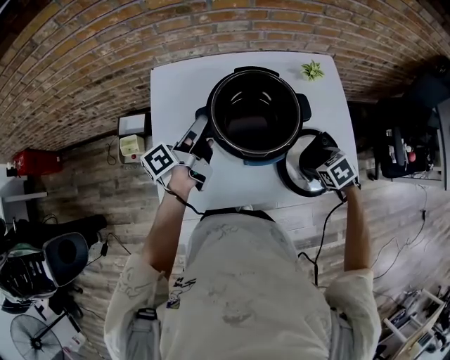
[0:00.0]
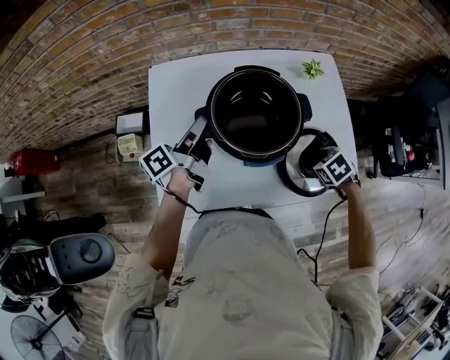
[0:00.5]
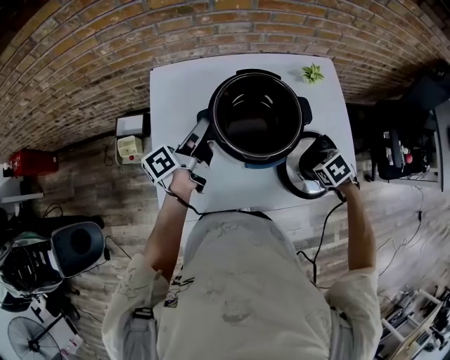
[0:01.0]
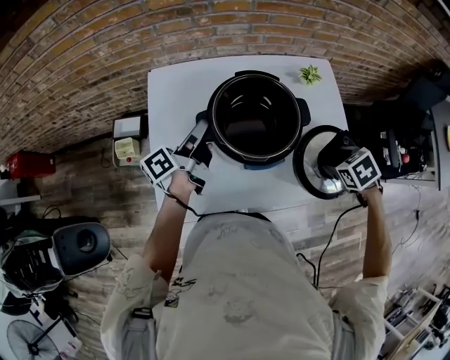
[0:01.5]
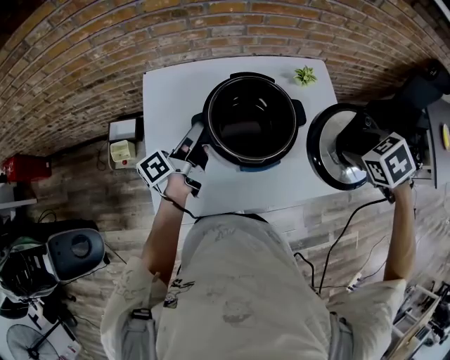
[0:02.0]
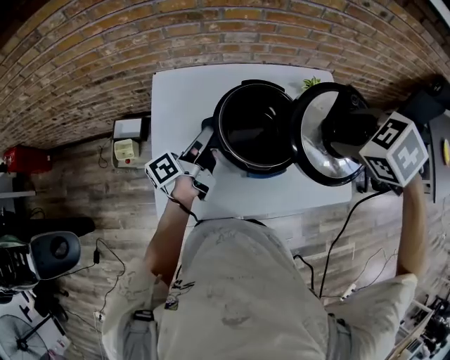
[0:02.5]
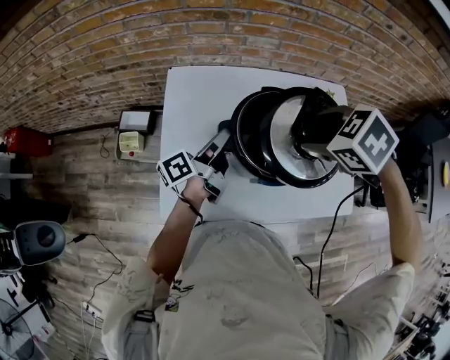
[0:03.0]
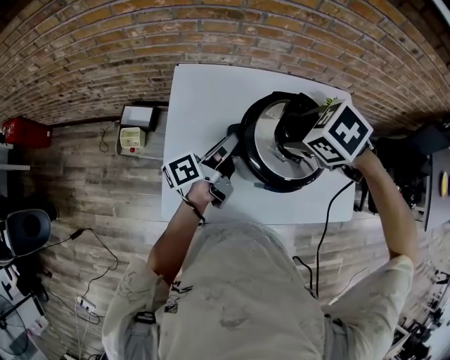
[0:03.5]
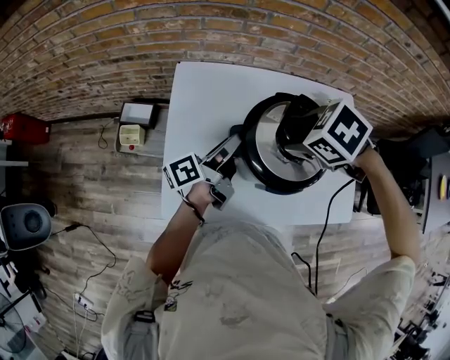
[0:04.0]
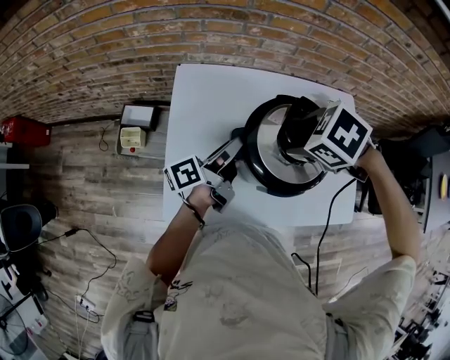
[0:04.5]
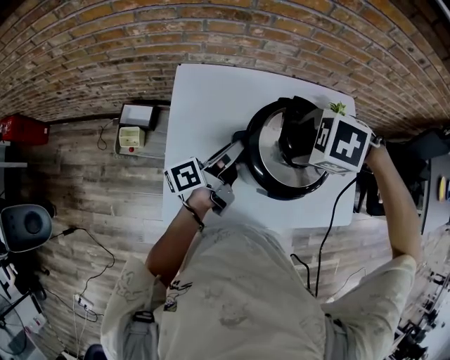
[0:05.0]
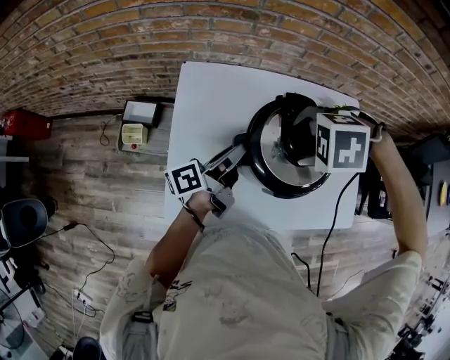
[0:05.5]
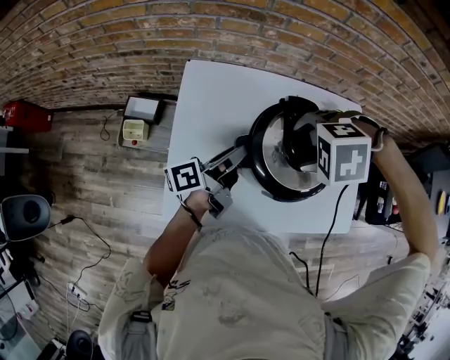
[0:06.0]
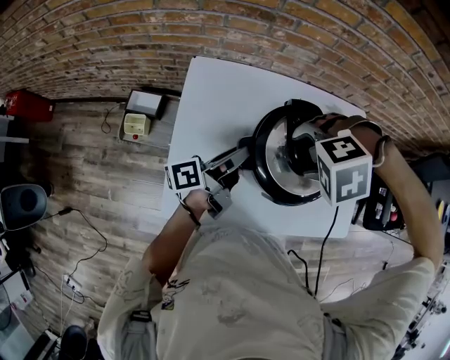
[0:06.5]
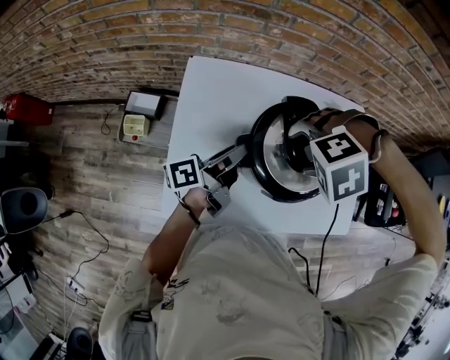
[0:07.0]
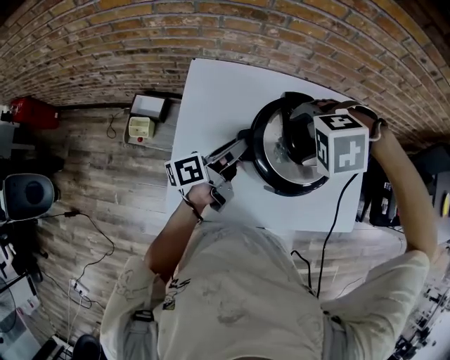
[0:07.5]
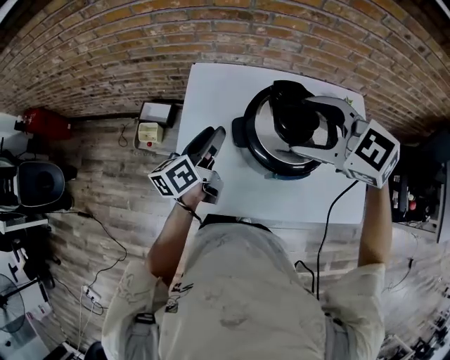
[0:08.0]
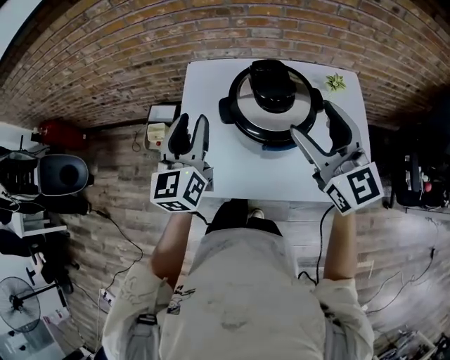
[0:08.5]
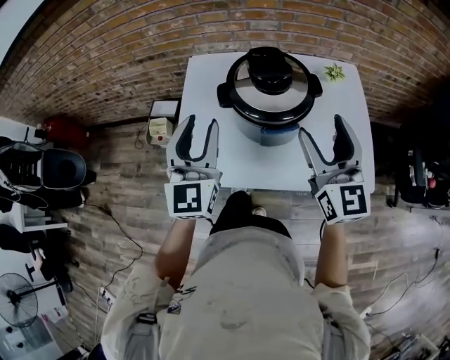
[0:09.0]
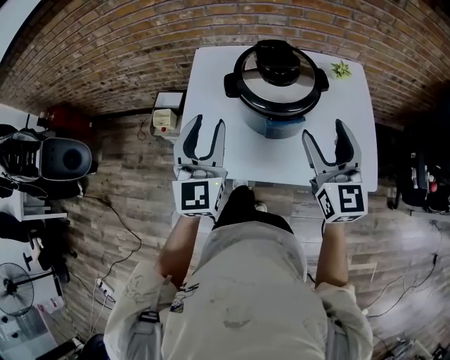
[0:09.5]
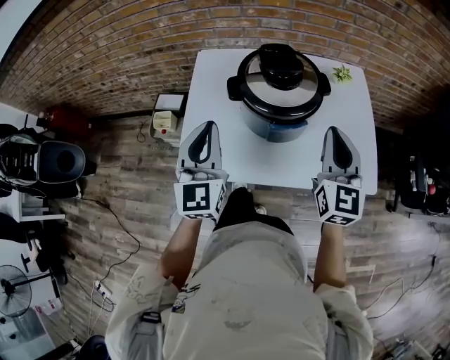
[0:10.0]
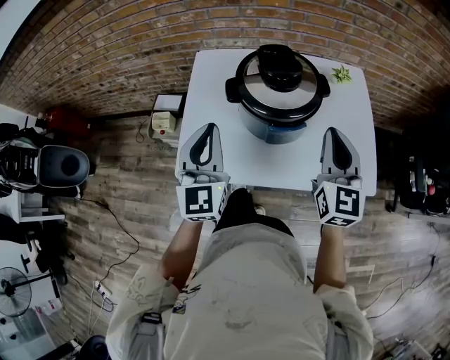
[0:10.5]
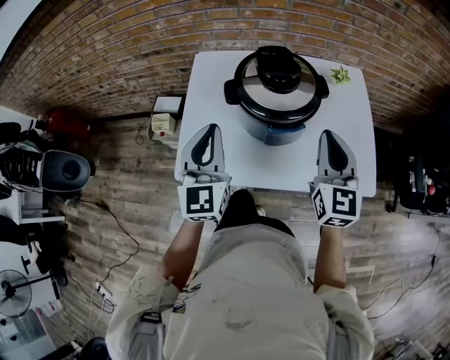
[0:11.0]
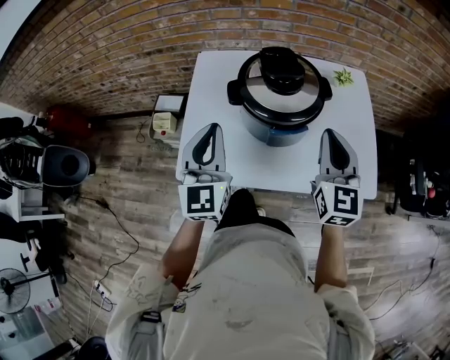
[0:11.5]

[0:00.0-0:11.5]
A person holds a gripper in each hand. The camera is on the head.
0:00.0 to 0:02.0: The right gripper heads upward, covering approximately 20 cm.
0:02.0 to 0:04.0: The right gripper travels upward and back again, approximately 5 cm each way, and turns by roughly 30 degrees.
0:04.0 to 0:06.0: The right gripper rotates around the line of its fingers by about 50 degrees, counterclockwise from behind.
0:06.0 to 0:07.5: The grippers stay close to where they were, moving slightly.
0:07.5 to 0:09.5: The left gripper changes place by roughly 20 cm, and rotates around the line of its fingers by about 80 degrees, clockwise from behind, while the right gripper ends up approximately 20 cm from where it was, and angles its fingers upward, by approximately 80 degrees.
0:09.5 to 0:11.5: The right gripper closes. The left gripper closes.

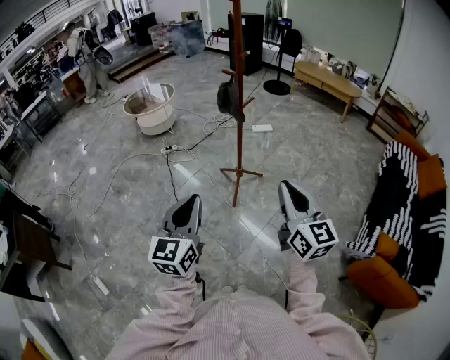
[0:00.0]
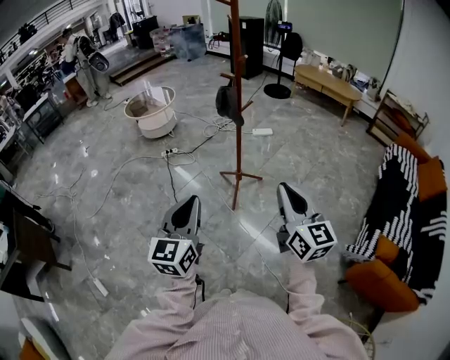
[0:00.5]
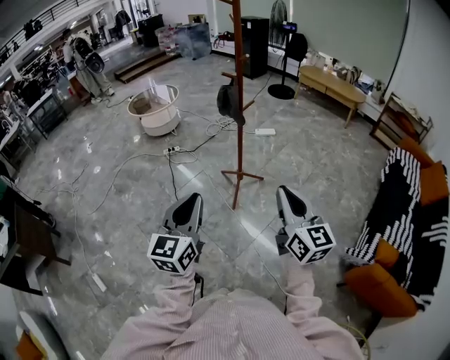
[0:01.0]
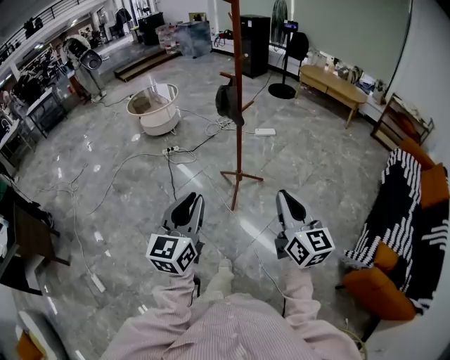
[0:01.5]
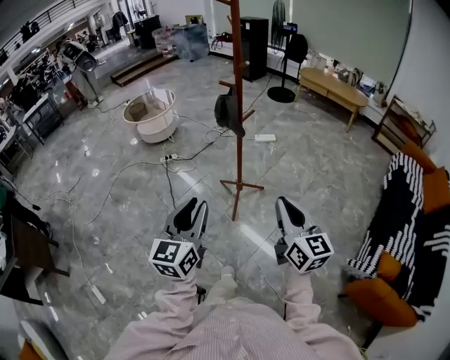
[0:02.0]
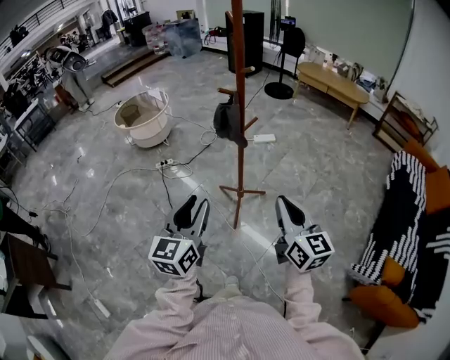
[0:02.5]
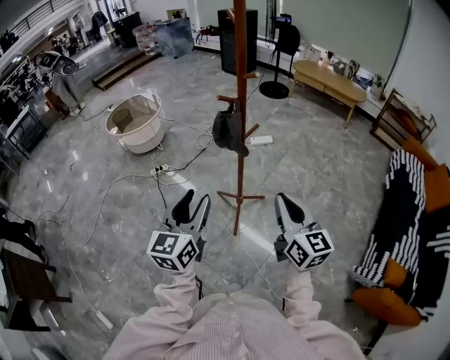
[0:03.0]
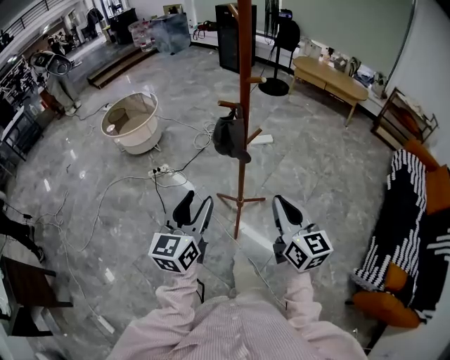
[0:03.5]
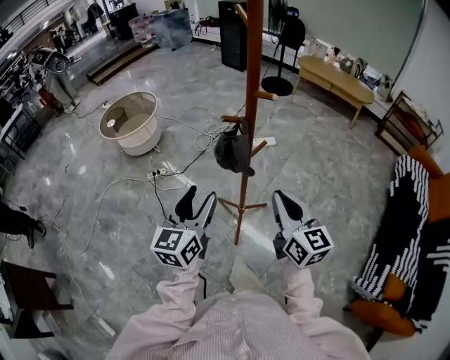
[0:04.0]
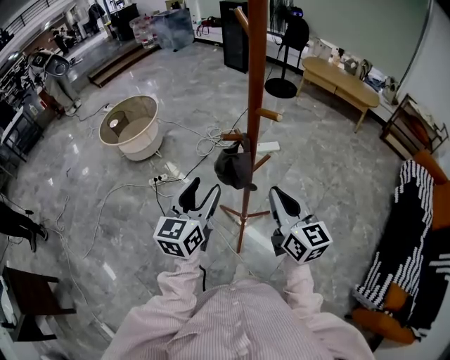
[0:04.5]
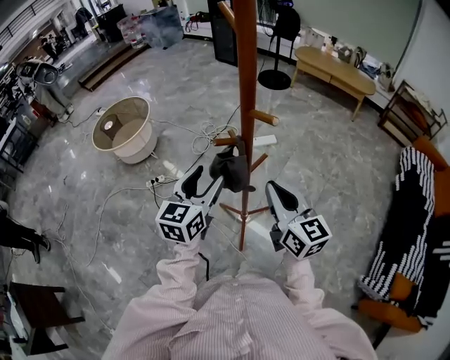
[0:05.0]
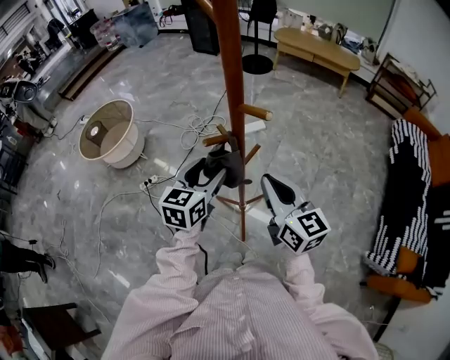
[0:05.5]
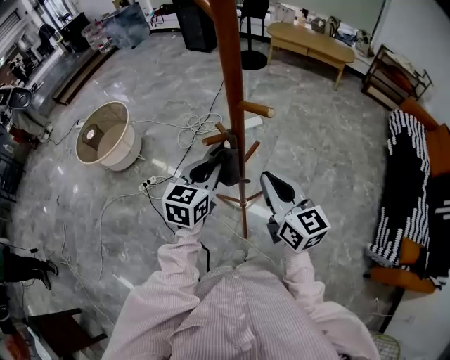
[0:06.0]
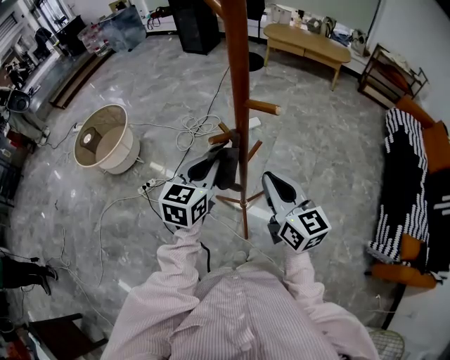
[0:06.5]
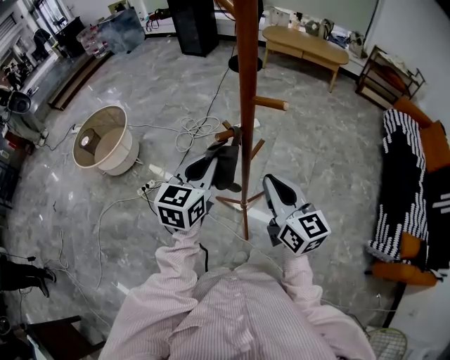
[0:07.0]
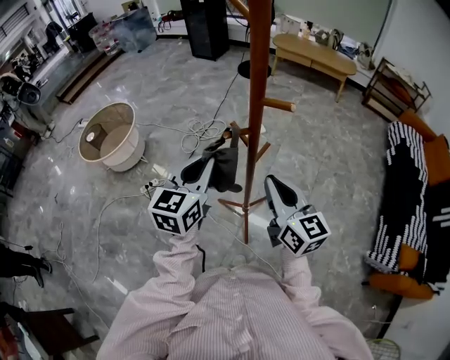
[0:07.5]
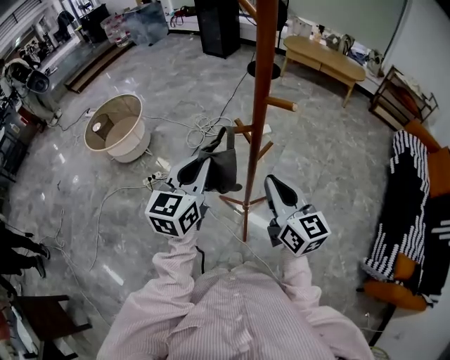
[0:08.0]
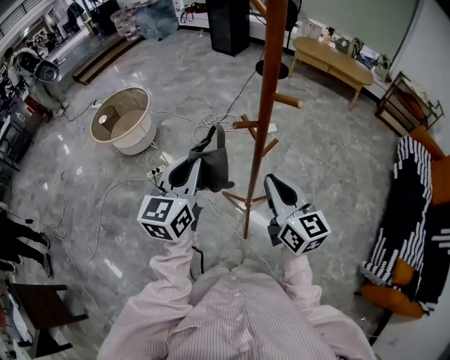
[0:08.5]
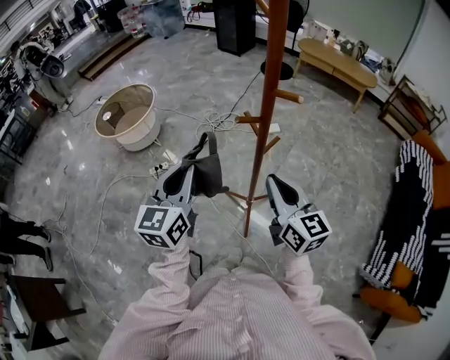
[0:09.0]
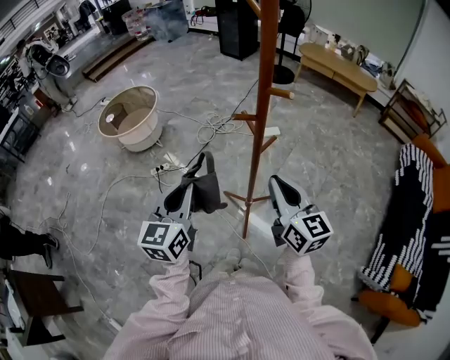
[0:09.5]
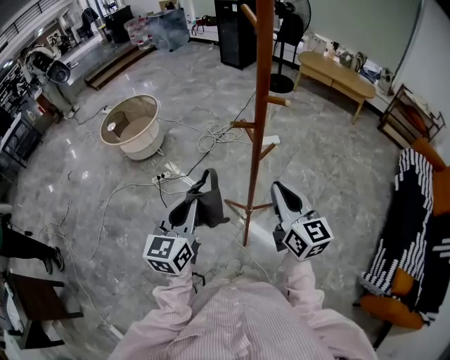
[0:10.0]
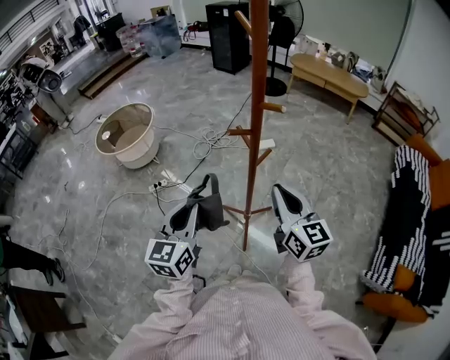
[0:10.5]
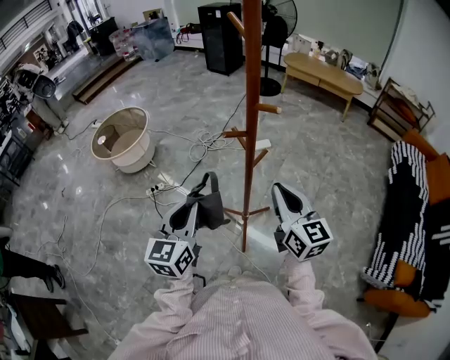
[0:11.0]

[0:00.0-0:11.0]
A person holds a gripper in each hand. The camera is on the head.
0:00.0 to 0:02.0: Both grippers move forward, some 10 cm.
0:02.0 to 0:03.5: Both grippers travel together forward, some 25 cm. The left gripper opens its fingers.
0:03.5 to 0:05.5: The two grippers go approximately 25 cm forward. The left gripper changes its angle by some 20 degrees.
0:05.5 to 0:07.5: The left gripper travels upward by approximately 5 cm, and closes up.
0:07.5 to 0:09.0: The left gripper travels backward and to the left by approximately 10 cm.
0:09.0 to 0:11.0: The left gripper travels backward by some 5 cm.

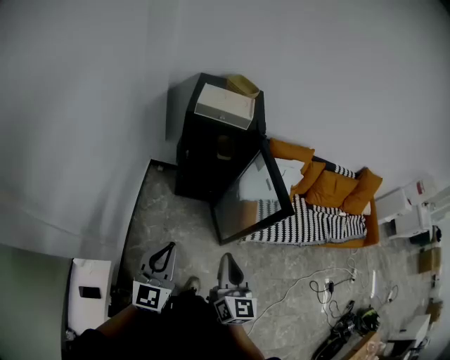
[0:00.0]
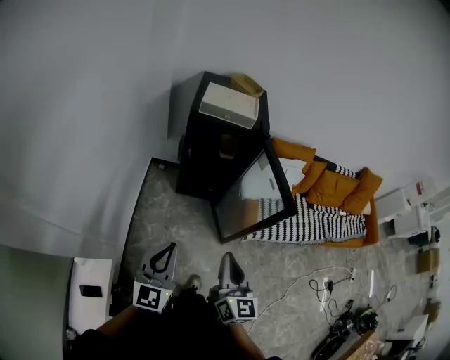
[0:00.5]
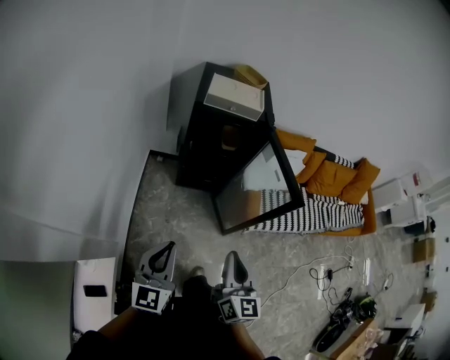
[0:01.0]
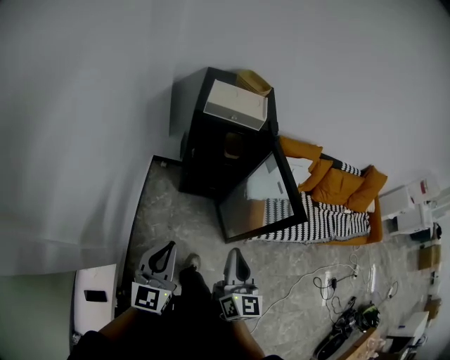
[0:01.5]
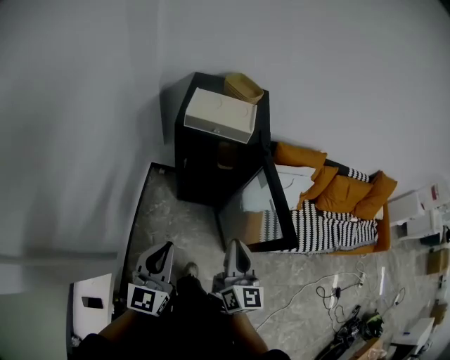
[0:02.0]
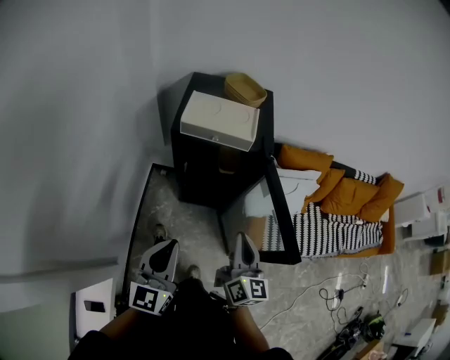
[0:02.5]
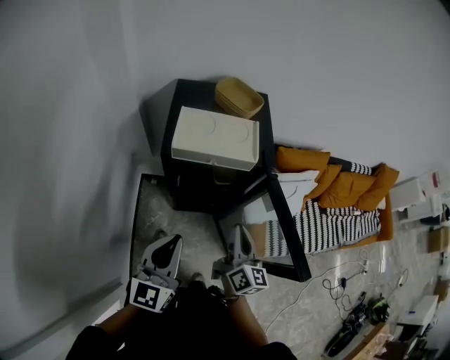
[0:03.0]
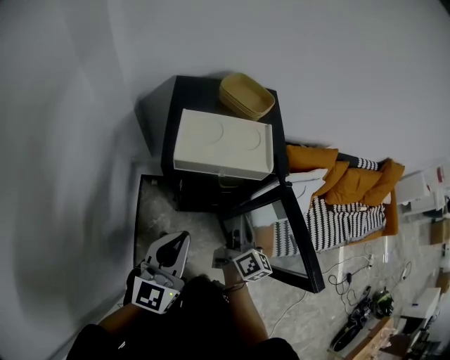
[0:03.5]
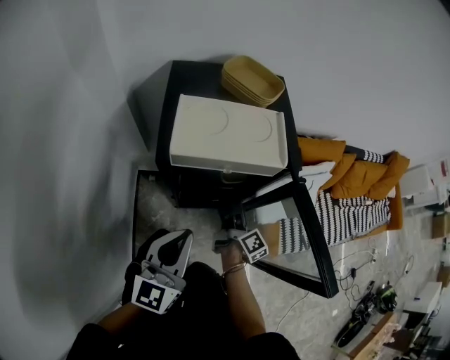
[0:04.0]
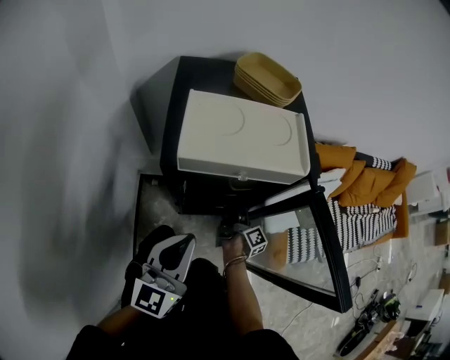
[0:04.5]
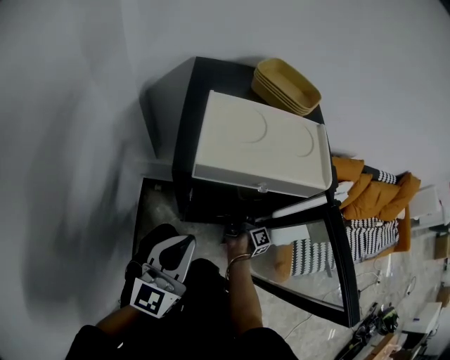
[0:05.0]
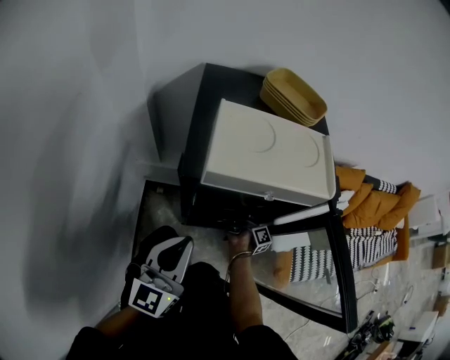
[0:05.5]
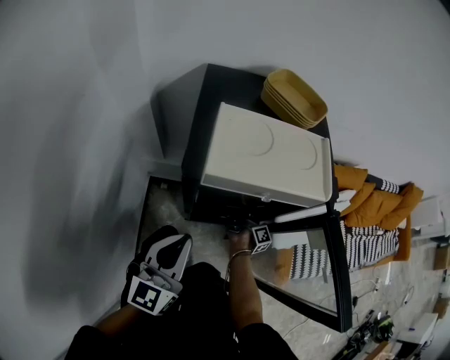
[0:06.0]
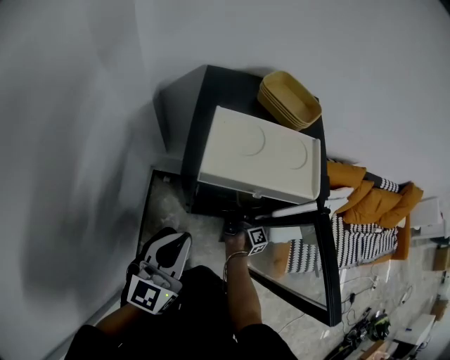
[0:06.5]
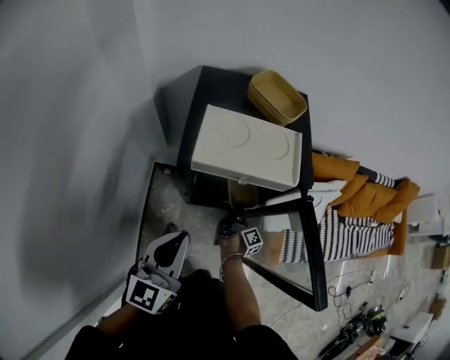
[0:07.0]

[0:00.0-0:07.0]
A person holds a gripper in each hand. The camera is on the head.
0:00.0 to 0:02.0: The two grippers go some 15 cm forward.
0:02.0 to 0:03.5: The left gripper is displaced forward by roughly 25 cm; the right gripper is displaced forward and downward by about 30 cm, and changes its angle by some 30 degrees.
0:03.5 to 0:05.0: The left gripper moves downward, some 15 cm. Meanwhile the right gripper heads downward and forward, covering about 35 cm, rolls clockwise, seen from behind, by about 40 degrees, and opens up.
0:05.0 to 0:07.0: The left gripper moves upward, approximately 15 cm, while the right gripper heads backward and upward, covering roughly 10 cm, and closes.
